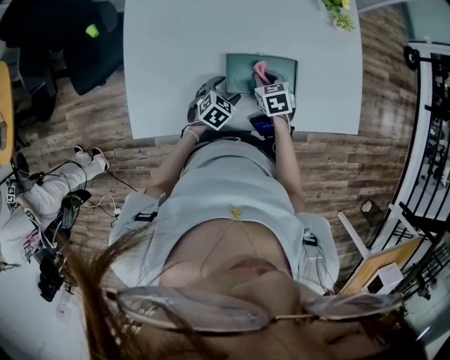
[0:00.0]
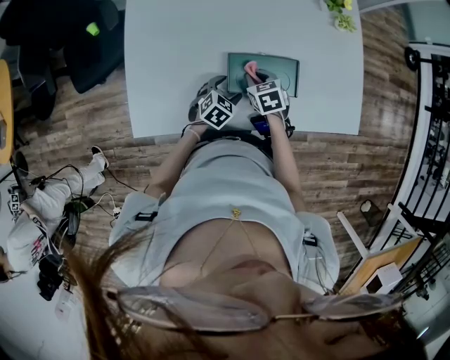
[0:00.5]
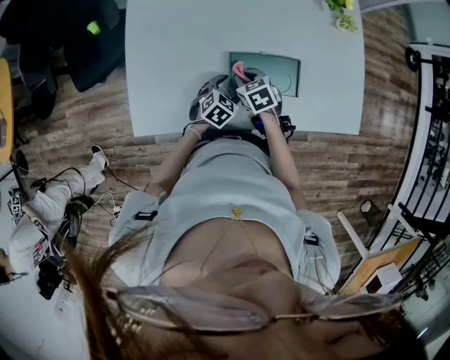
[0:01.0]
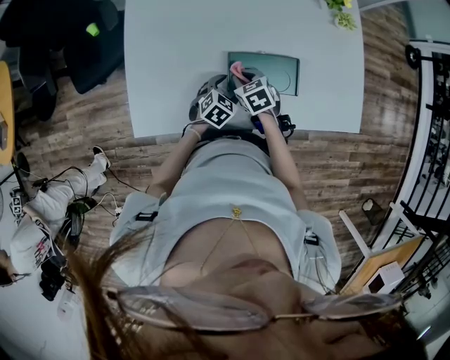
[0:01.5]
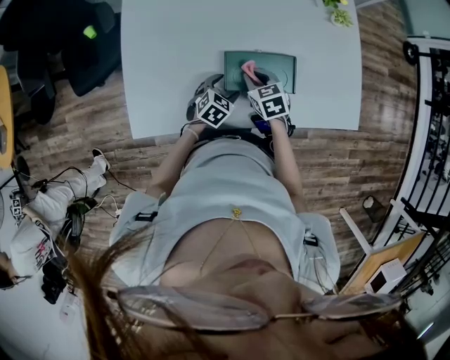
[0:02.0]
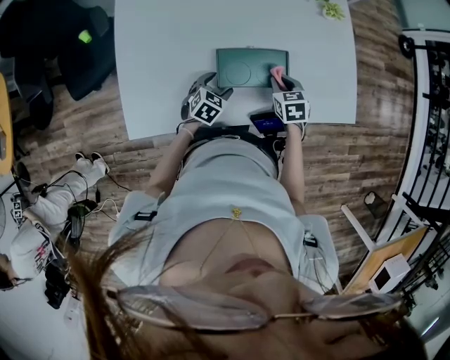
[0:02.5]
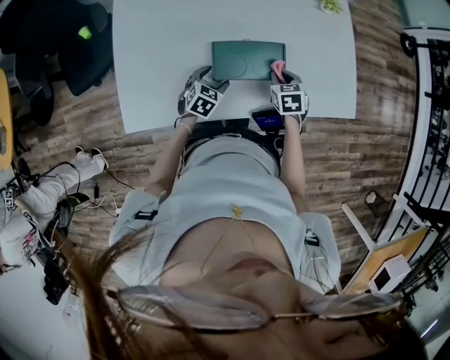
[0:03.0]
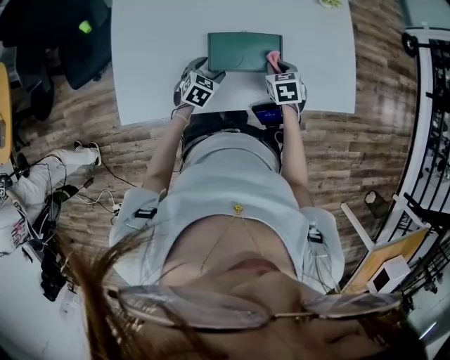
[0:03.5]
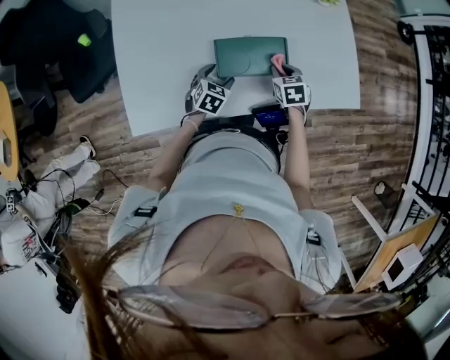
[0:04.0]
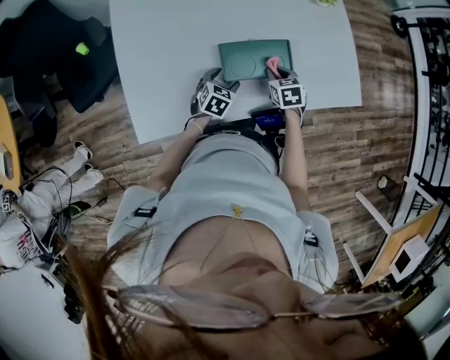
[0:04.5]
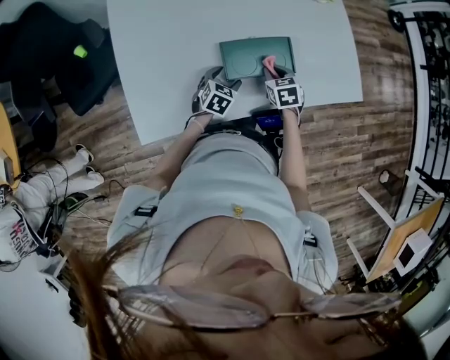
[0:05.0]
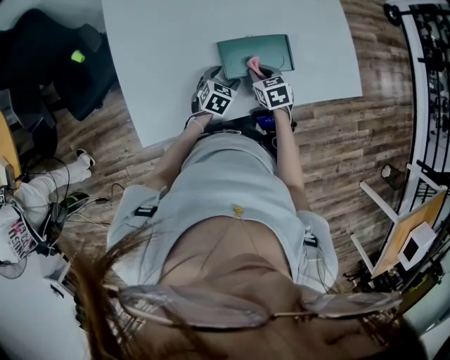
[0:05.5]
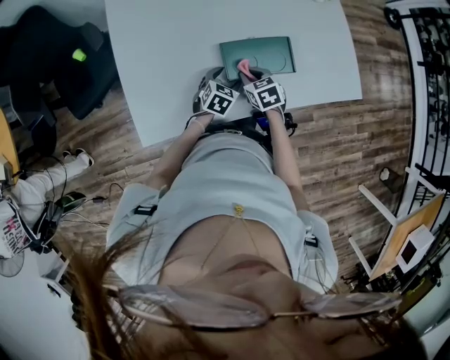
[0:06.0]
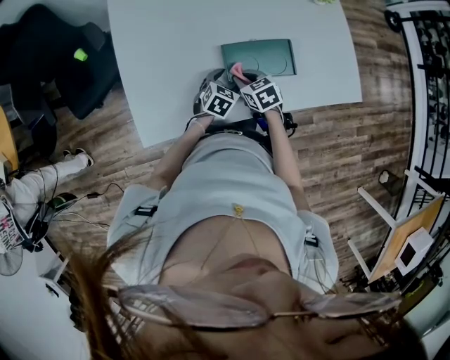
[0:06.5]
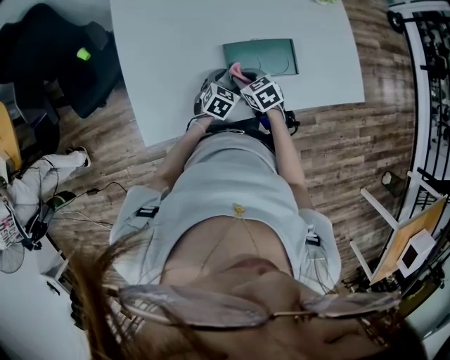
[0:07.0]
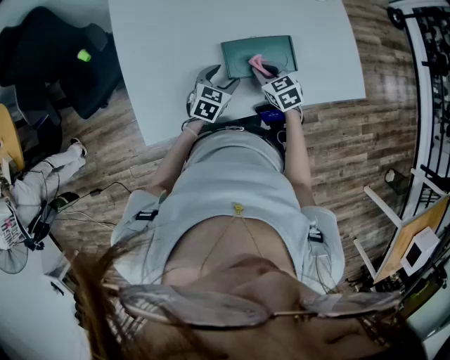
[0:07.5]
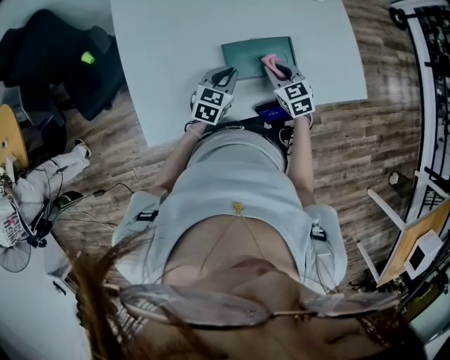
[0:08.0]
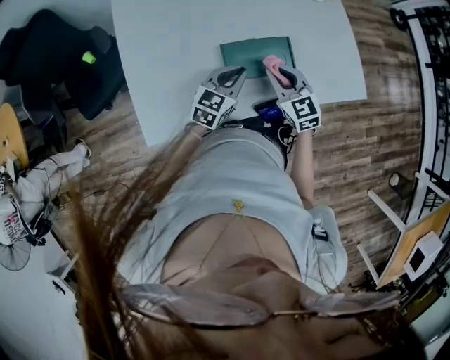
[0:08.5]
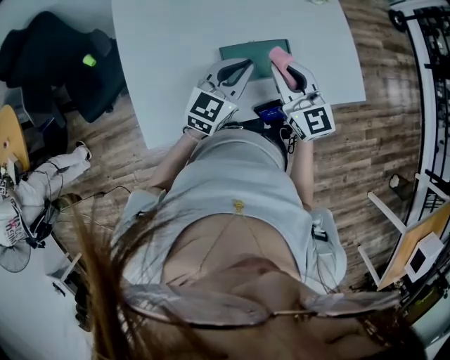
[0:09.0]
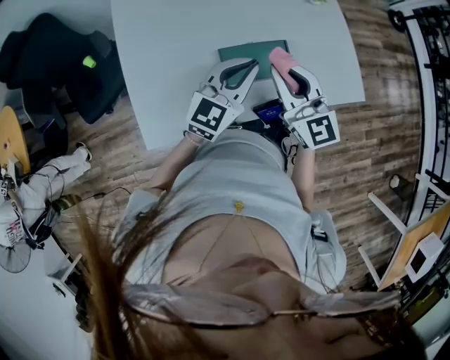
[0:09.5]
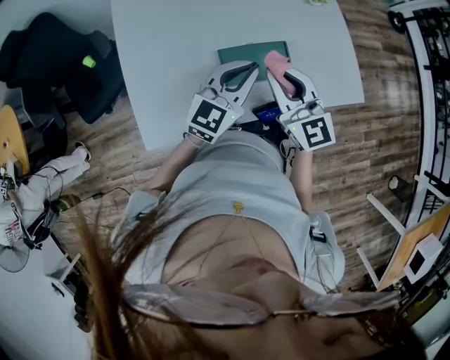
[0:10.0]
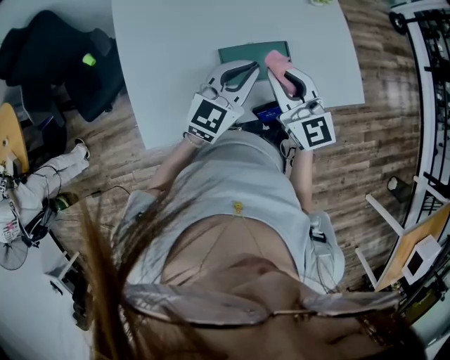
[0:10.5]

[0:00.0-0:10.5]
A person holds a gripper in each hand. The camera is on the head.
0:02.0 to 0:04.0: The right gripper goes some 10 cm to the right.
0:04.0 to 0:06.5: The right gripper is displaced to the left by roughly 15 cm.
0:06.5 to 0:08.5: The left gripper heads upward, covering about 15 cm, swivels about 20 degrees, and closes up. Meanwhile the right gripper shifts roughly 15 cm upward and to the right, and rotates about 30 degrees.
0:08.5 to 0:10.5: The two grippers go some 15 cm upward.

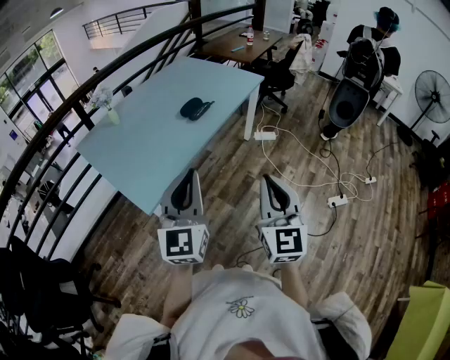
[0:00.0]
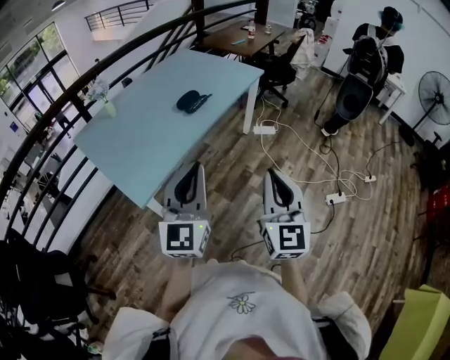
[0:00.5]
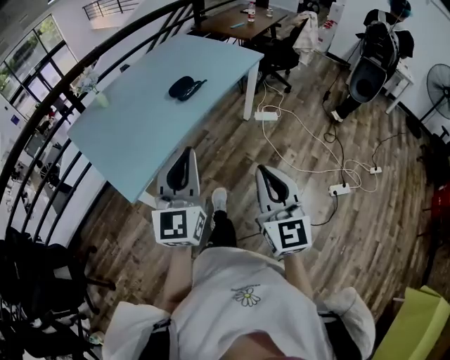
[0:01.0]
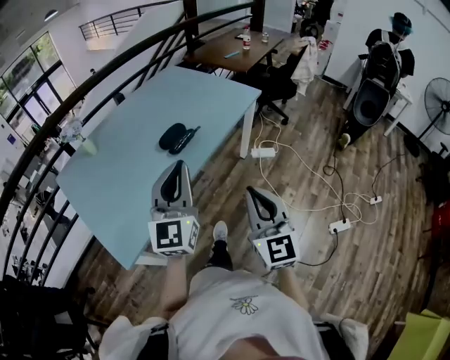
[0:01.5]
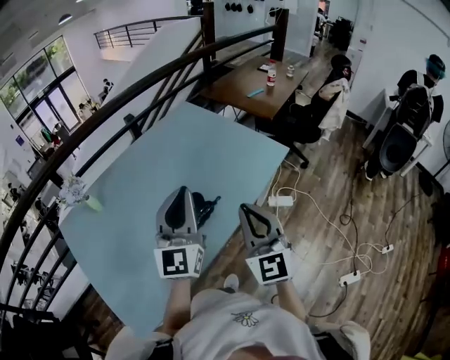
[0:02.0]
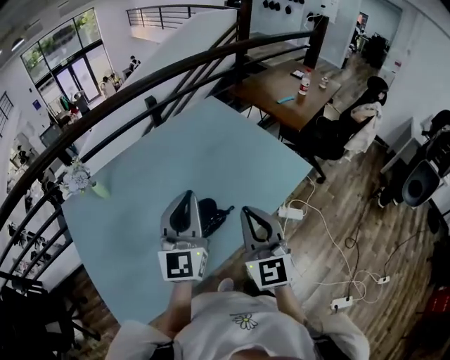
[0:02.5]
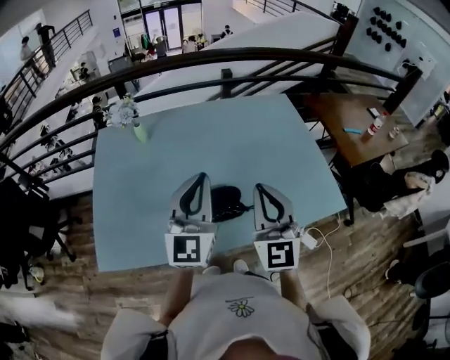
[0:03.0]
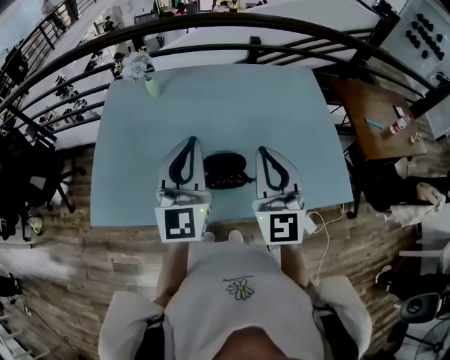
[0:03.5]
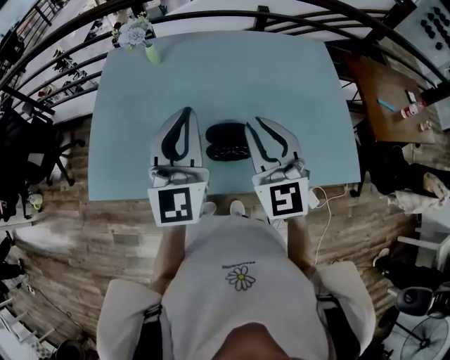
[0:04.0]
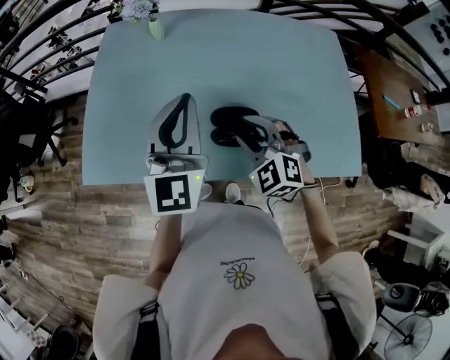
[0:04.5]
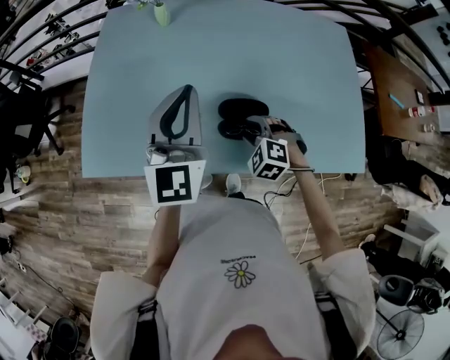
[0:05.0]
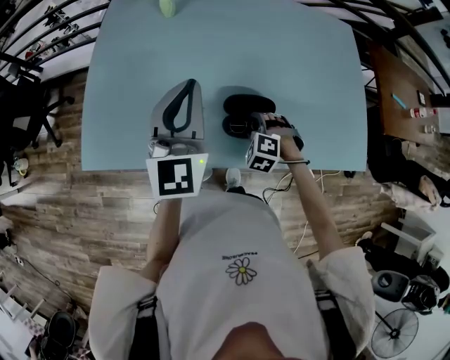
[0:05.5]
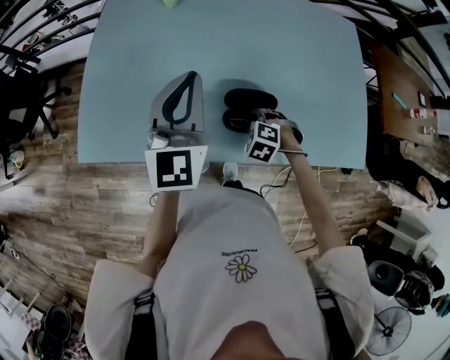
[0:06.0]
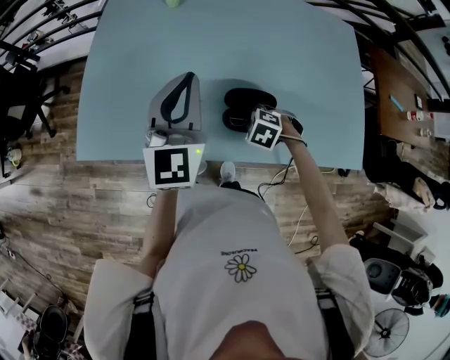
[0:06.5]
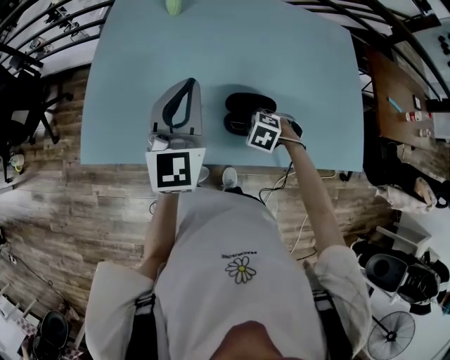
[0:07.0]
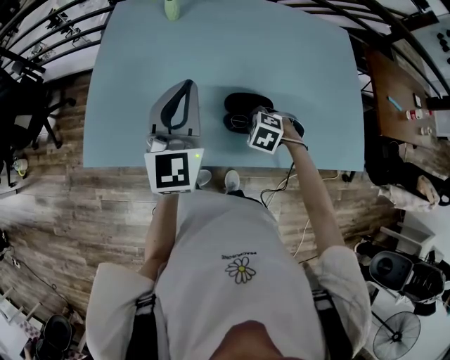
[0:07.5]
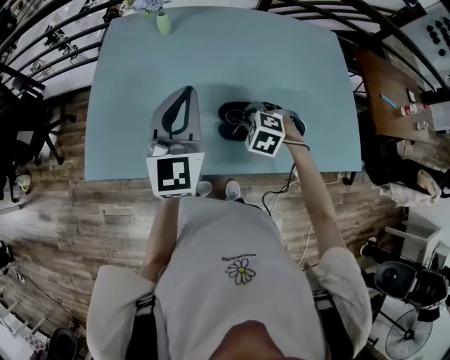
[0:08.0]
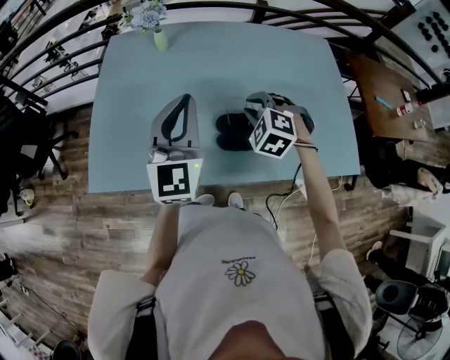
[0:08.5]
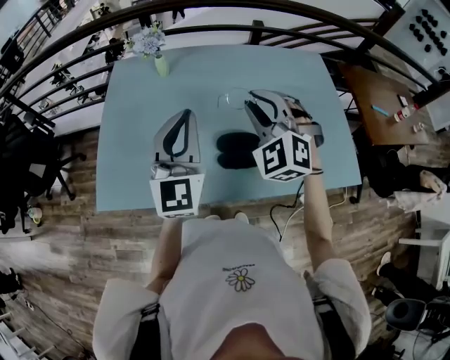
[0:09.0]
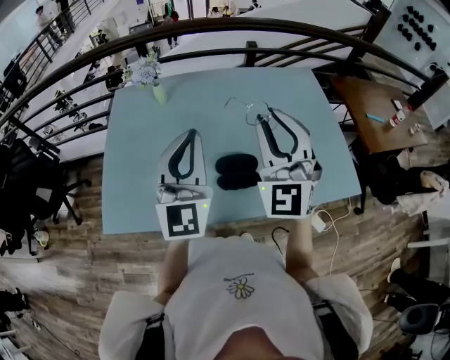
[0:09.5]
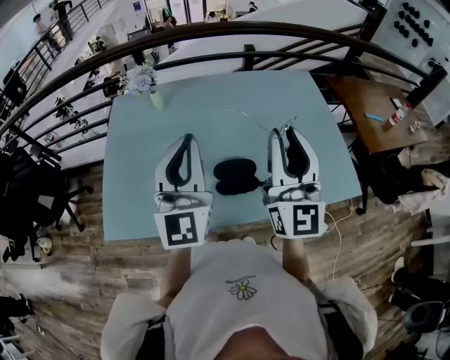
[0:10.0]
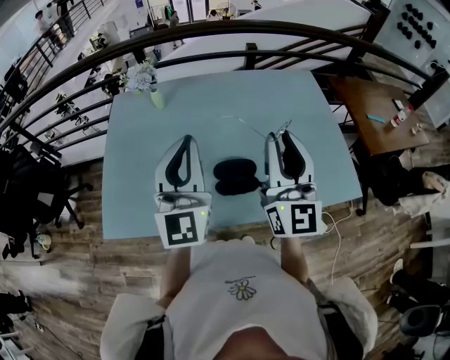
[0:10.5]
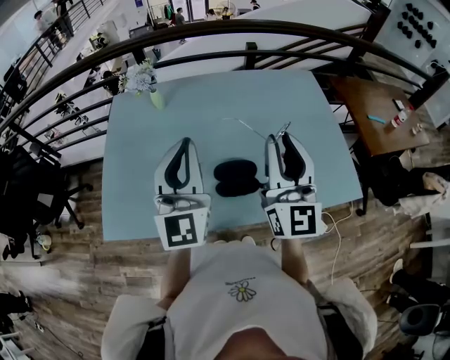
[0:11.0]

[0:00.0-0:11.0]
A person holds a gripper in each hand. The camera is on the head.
0:00.0 to 0:02.0: The two grippers travel together, forward, roughly 60 cm.
0:02.0 to 0:03.5: The right gripper changes place by approximately 15 cm, and changes its angle by some 40 degrees, while the left gripper changes place by approximately 10 cm, and turns by approximately 50 degrees.
0:03.5 to 0:05.5: The left gripper is displaced to the left, downward and forward by approximately 15 cm, while the right gripper heads downward, covering roughly 35 cm, tilts its fingers roughly 70 degrees downward, and opens up.
0:05.5 to 0:07.5: The right gripper closes.
0:07.5 to 0:09.0: The right gripper travels upward by some 30 cm, and points its fingers approximately 60 degrees further upward, while the left gripper heads upward, covering about 5 cm.
0:09.0 to 0:11.0: The left gripper shifts by approximately 5 cm. Meanwhile the right gripper shifts approximately 15 cm to the right, upward and backward, and tilts its fingers some 40 degrees upward.

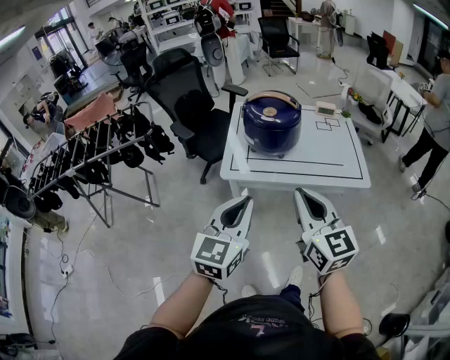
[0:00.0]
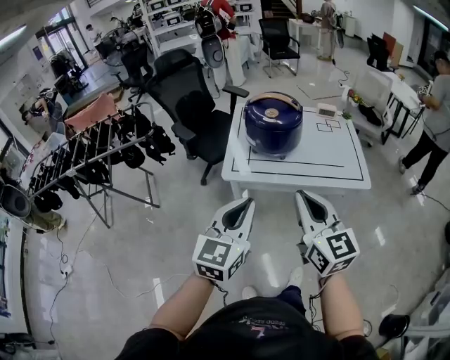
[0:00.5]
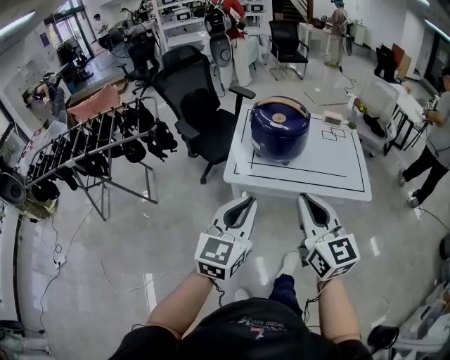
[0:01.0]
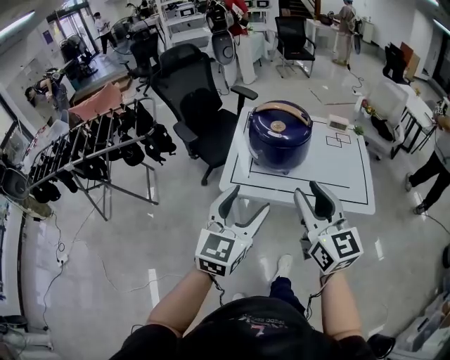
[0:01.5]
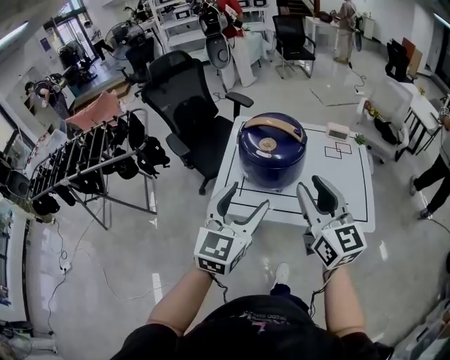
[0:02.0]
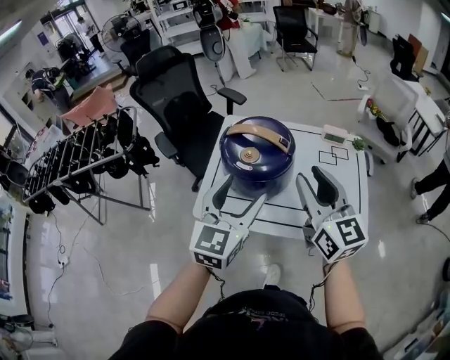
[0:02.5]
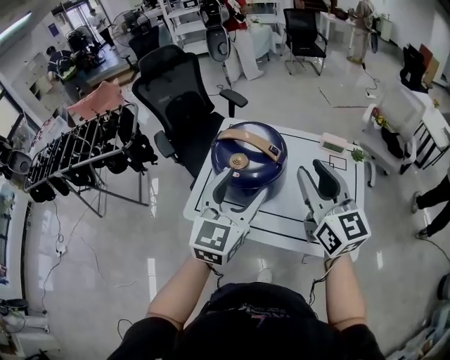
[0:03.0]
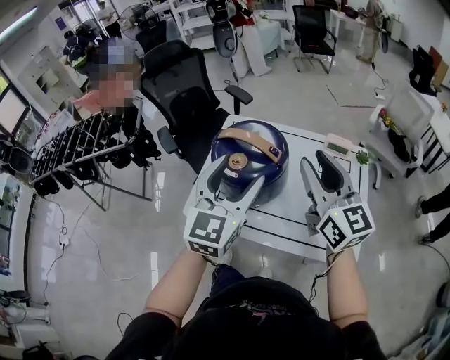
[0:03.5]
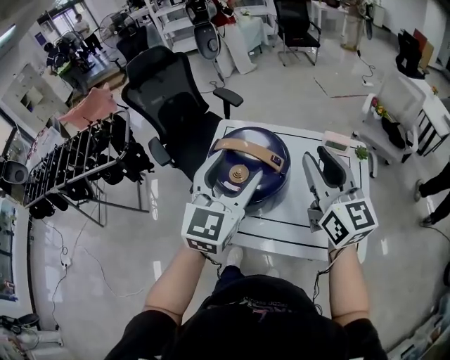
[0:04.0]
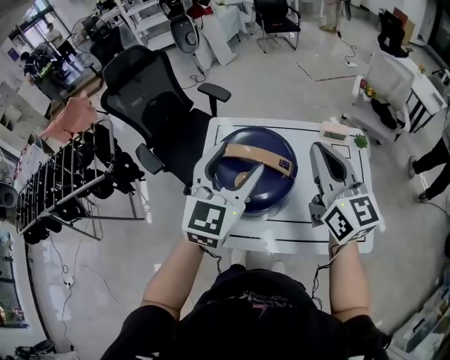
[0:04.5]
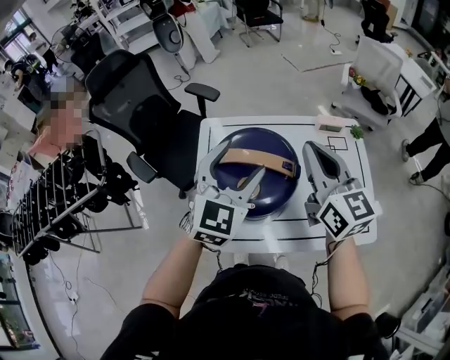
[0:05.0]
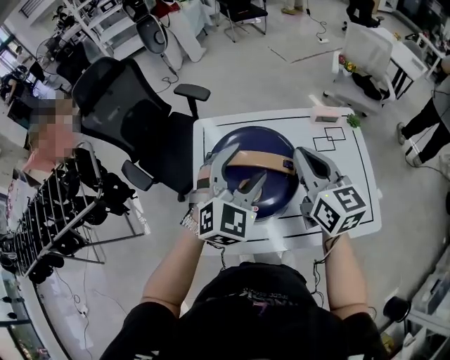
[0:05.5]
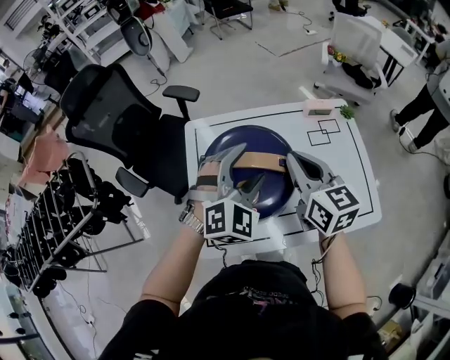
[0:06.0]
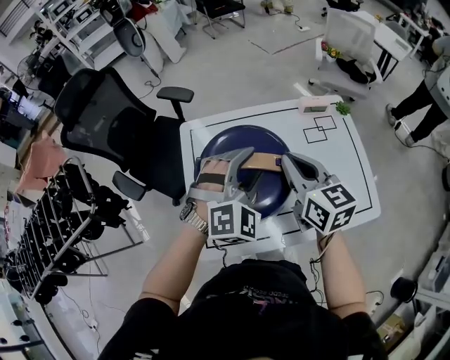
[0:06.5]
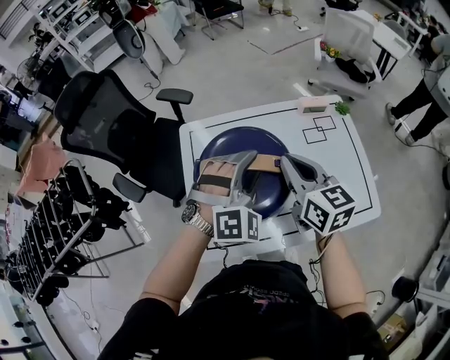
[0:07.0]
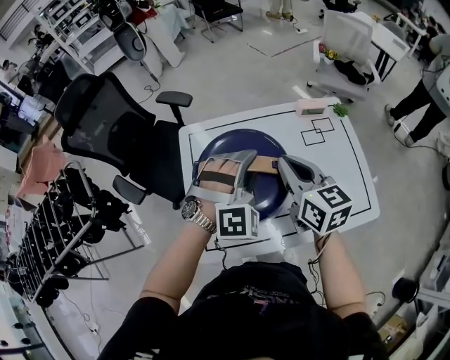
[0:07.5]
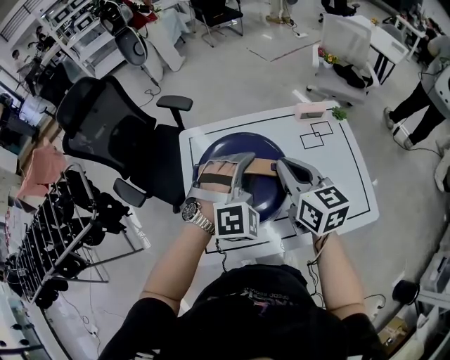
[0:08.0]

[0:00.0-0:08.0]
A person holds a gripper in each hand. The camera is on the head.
0:00.0 to 0:02.0: The grippers both shift forward by roughly 20 cm. The left gripper opens up. The right gripper opens up.
0:02.0 to 0:04.0: Both grippers move forward and to the right, some 25 cm.
0:04.0 to 0:06.0: The left gripper moves downward and forward, roughly 15 cm, and twists some 40 degrees clockwise, seen from behind. Meanwhile the right gripper goes roughly 15 cm downward, to the left and forward, changes its angle by about 20 degrees, and closes.
0:06.0 to 0:08.0: The left gripper changes its angle by roughly 20 degrees, and closes up.
